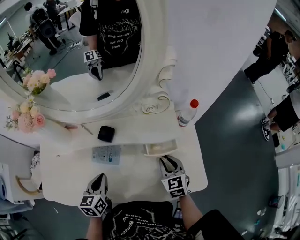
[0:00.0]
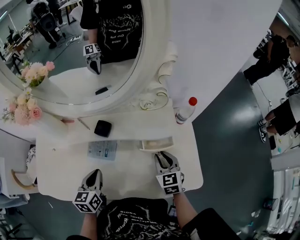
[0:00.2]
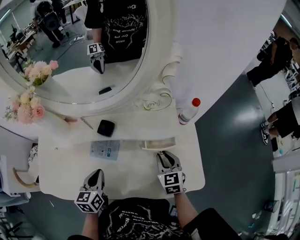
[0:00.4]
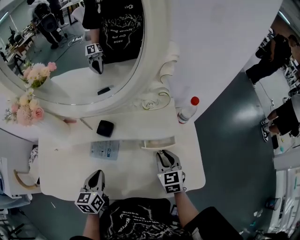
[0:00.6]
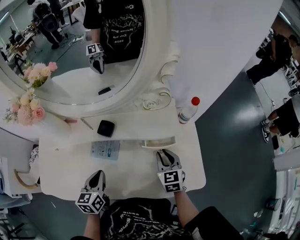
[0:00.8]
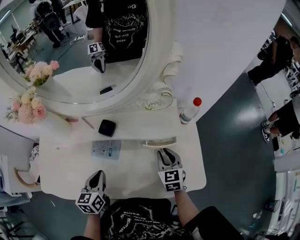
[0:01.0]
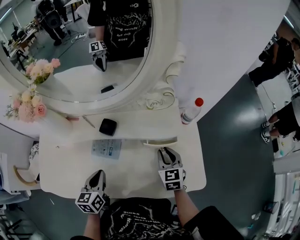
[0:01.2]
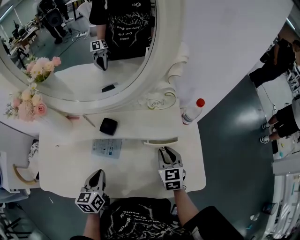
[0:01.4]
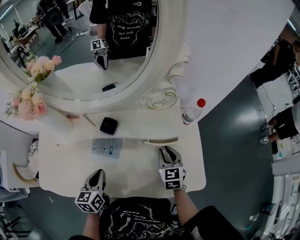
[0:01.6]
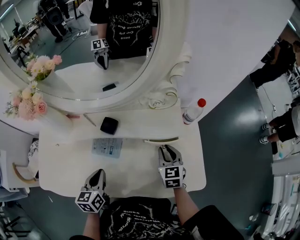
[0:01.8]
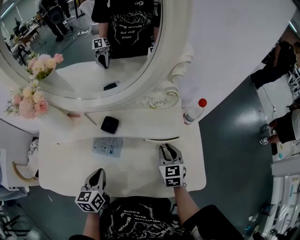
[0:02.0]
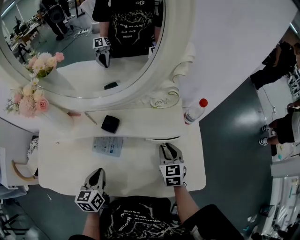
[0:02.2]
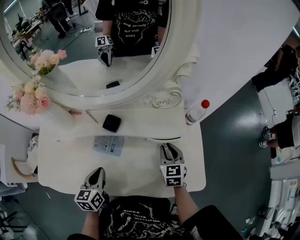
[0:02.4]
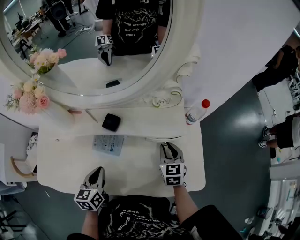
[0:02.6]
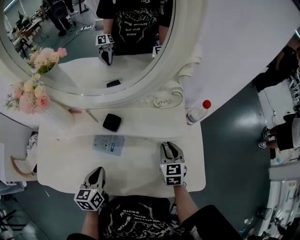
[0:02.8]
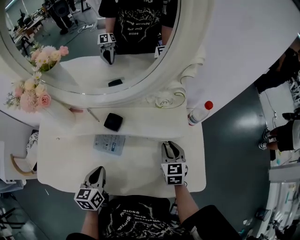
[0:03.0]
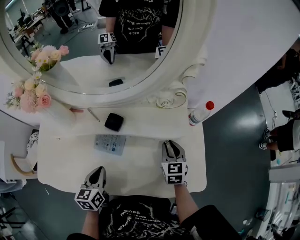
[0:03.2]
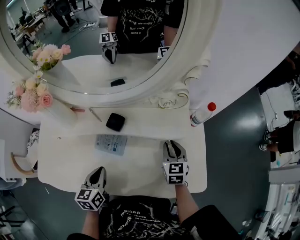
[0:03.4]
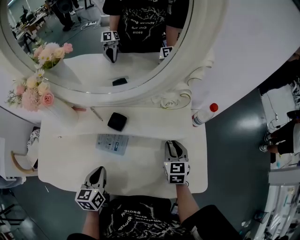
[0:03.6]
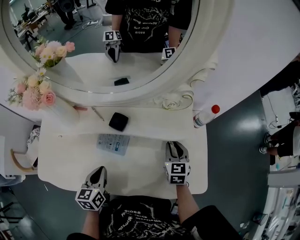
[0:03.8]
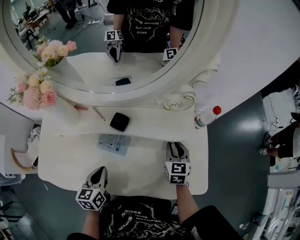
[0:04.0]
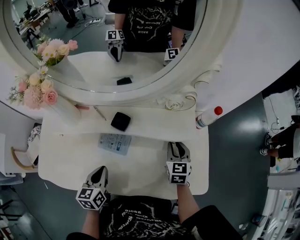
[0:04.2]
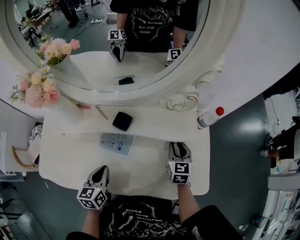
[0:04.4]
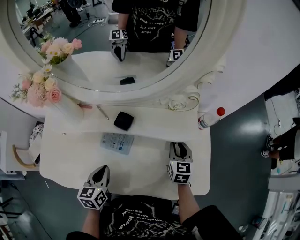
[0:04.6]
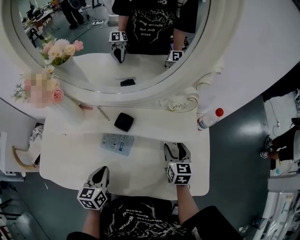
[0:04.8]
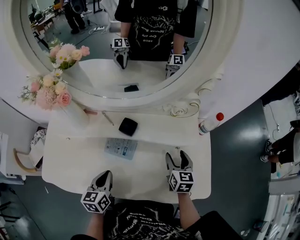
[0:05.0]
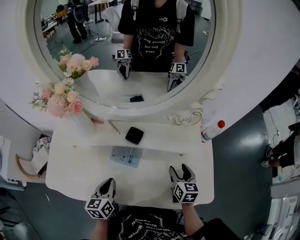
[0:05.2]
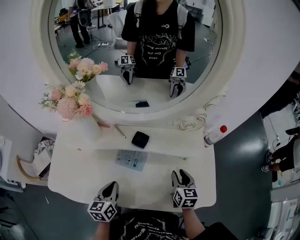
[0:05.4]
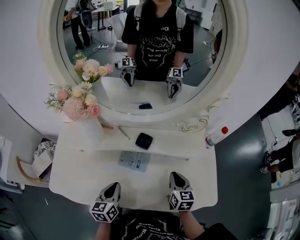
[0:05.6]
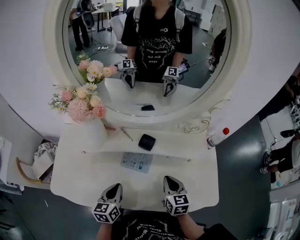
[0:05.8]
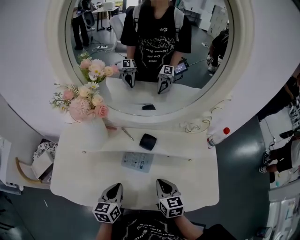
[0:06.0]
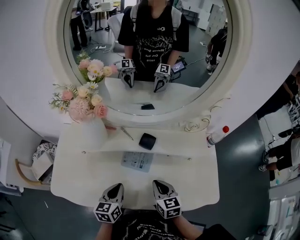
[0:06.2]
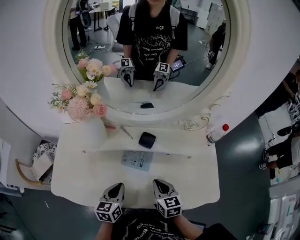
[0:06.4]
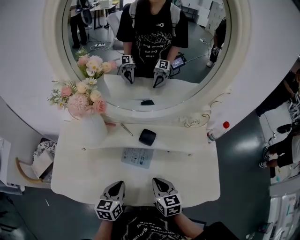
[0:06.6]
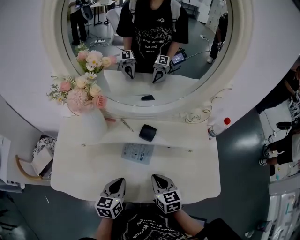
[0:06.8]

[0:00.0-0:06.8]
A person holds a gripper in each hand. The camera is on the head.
0:00.0 to 0:02.8: The grippers move only a little.
0:02.8 to 0:04.0: The grippers make only small movements.
0:04.0 to 0:05.4: The right gripper heads backward, covering about 5 cm, and opens, then closes once more.
0:05.4 to 0:06.8: The right gripper heads to the left, covering about 15 cm, and closes its fingers.

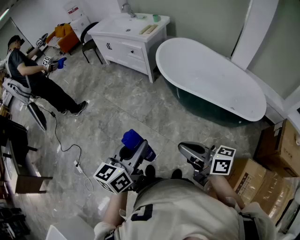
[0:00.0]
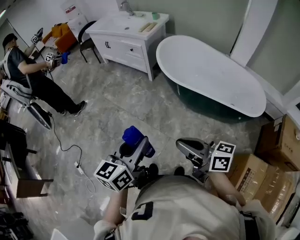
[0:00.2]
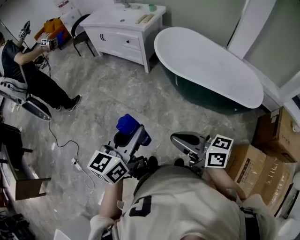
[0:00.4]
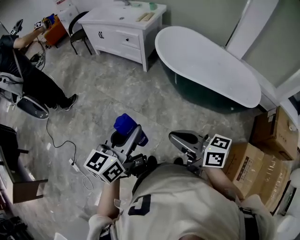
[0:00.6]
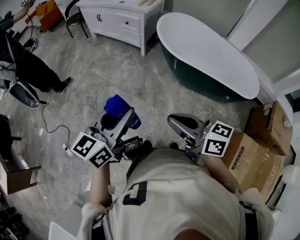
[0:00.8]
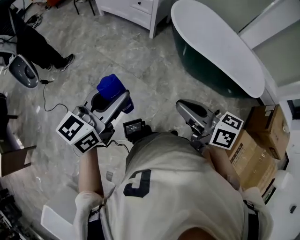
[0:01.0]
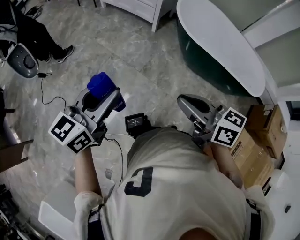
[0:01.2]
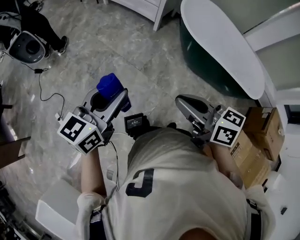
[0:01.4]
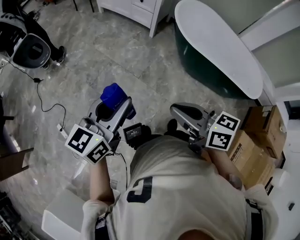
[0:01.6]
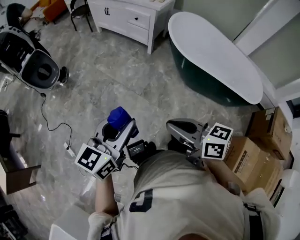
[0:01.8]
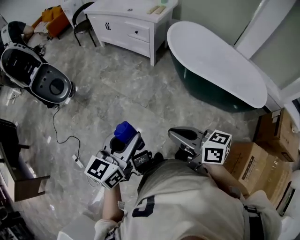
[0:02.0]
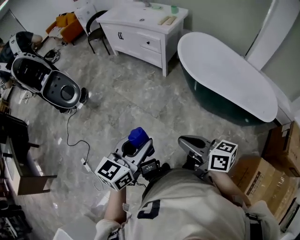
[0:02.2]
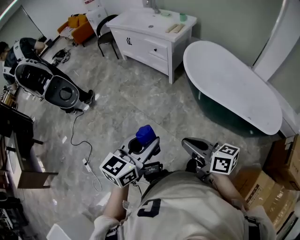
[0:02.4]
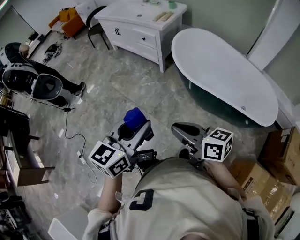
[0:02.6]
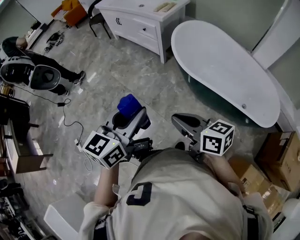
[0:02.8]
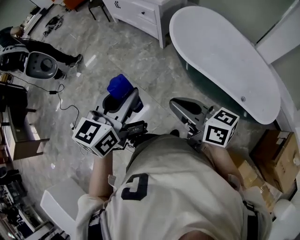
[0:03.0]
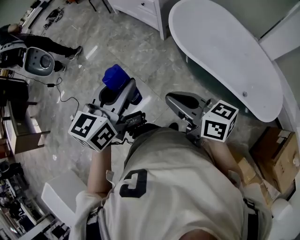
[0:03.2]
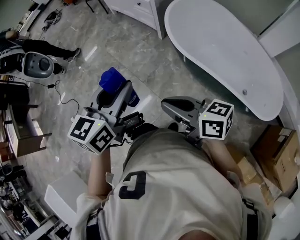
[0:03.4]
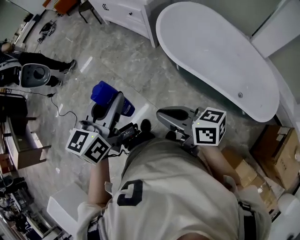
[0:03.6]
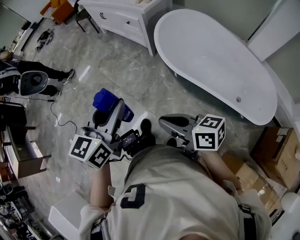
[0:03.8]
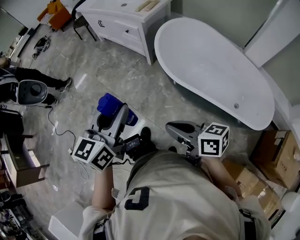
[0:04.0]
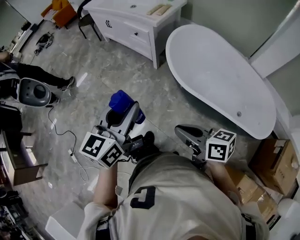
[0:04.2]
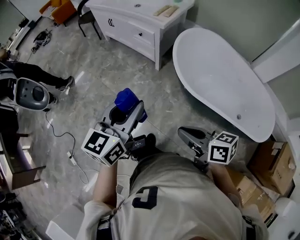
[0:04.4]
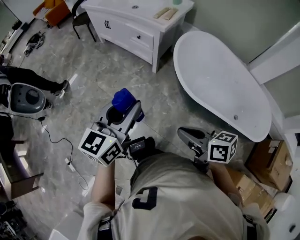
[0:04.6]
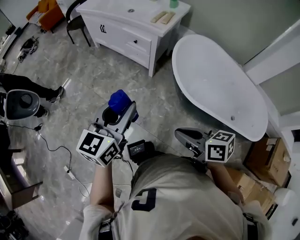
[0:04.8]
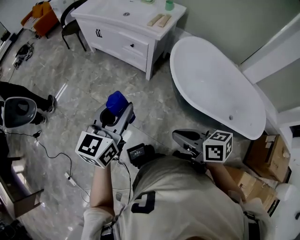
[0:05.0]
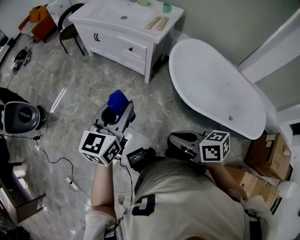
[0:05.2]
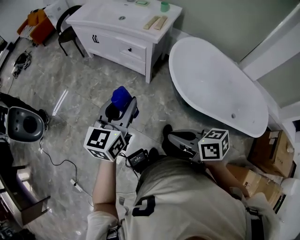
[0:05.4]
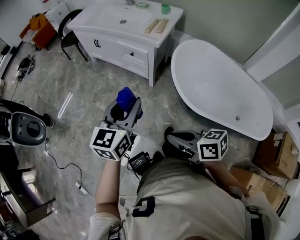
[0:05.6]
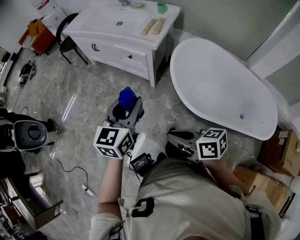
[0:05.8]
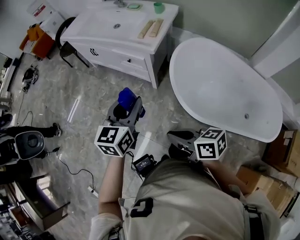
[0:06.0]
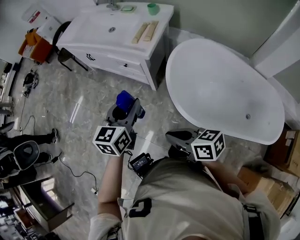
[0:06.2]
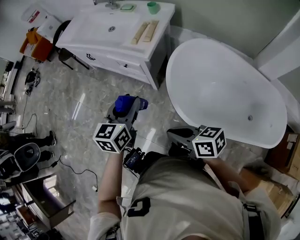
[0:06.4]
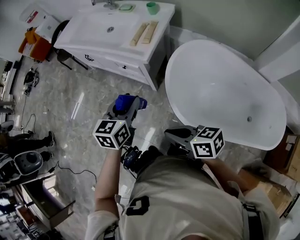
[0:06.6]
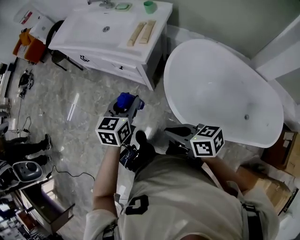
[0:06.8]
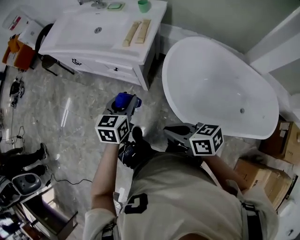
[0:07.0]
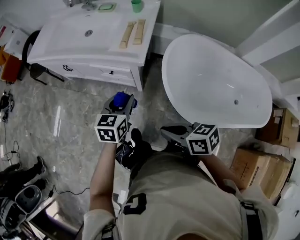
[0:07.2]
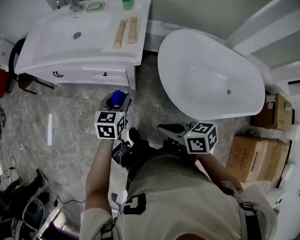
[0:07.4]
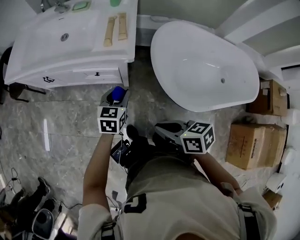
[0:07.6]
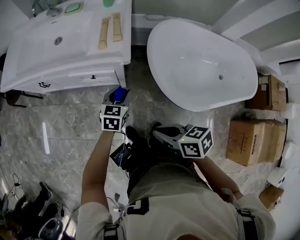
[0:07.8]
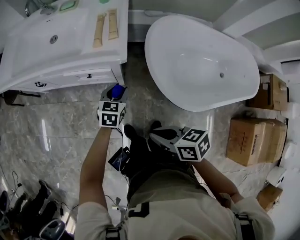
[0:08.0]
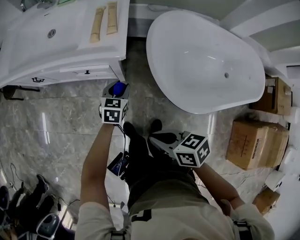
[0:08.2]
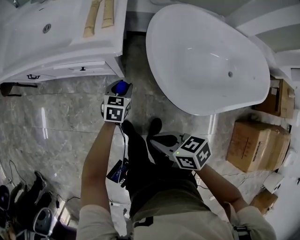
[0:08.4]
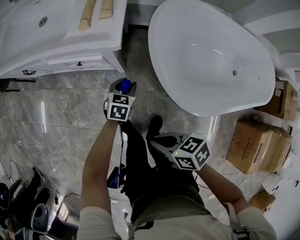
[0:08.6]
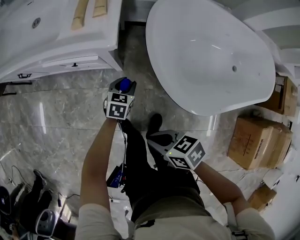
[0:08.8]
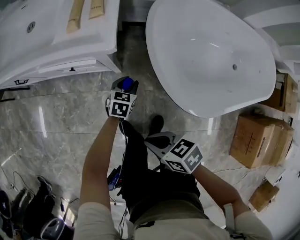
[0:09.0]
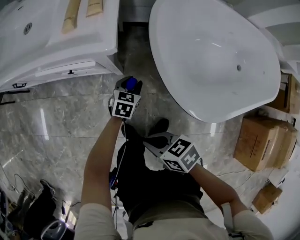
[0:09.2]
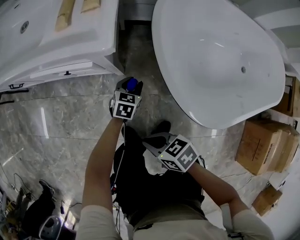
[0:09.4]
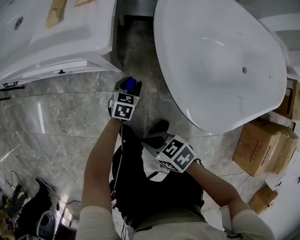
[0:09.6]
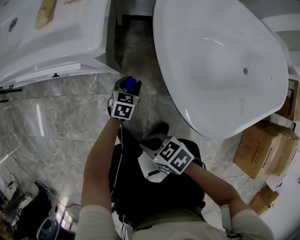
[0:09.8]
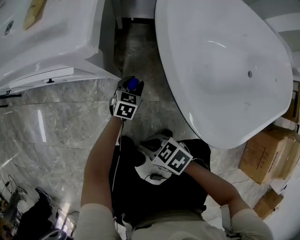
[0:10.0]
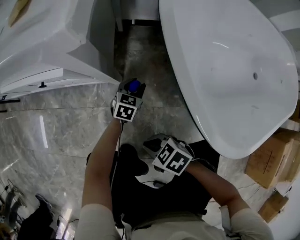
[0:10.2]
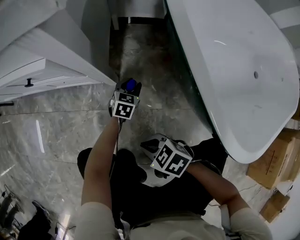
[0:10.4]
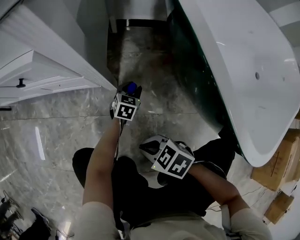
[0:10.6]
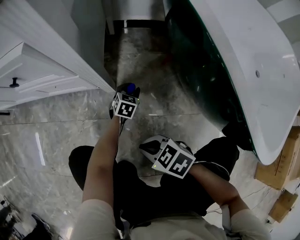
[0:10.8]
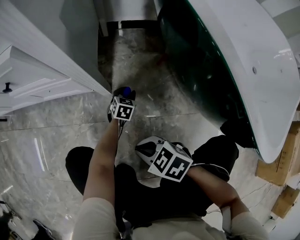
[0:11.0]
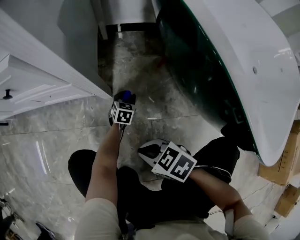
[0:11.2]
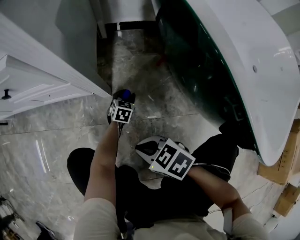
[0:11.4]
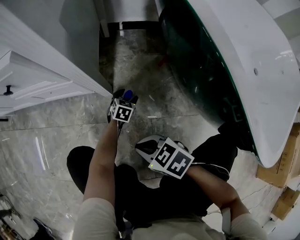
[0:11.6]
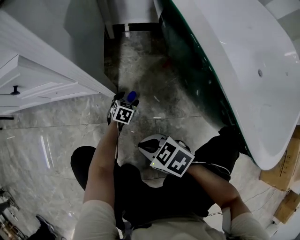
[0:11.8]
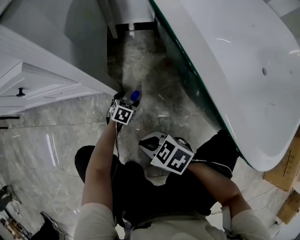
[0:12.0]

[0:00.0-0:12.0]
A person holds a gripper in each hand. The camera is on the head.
0:00.0 to 0:01.6: The grippers both shift to the left by roughly 25 cm.
0:01.6 to 0:03.0: The two grippers go some 30 cm to the right.
0:03.0 to 0:04.4: Both grippers travel together forward, some 15 cm.
0:04.4 to 0:06.0: The grippers both shift forward by roughly 25 cm.
0:06.0 to 0:07.6: The left gripper goes approximately 30 cm forward and downward, and changes its angle by roughly 30 degrees; the right gripper shifts about 20 cm forward, and turns by about 30 degrees.
0:07.6 to 0:09.0: Both grippers travel together downward, roughly 25 cm.
0:09.0 to 0:10.4: Both grippers travel together downward, roughly 35 cm. The right gripper changes its angle by about 30 degrees.
0:10.4 to 0:12.0: The left gripper travels downward by about 10 cm, and opens. The right gripper goes some 5 cm downward.

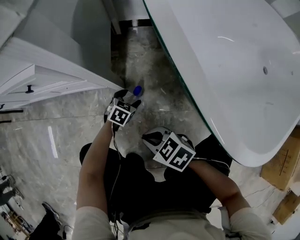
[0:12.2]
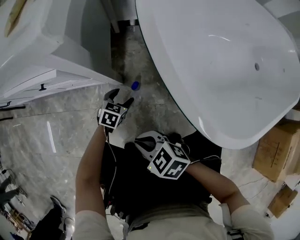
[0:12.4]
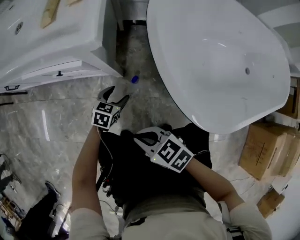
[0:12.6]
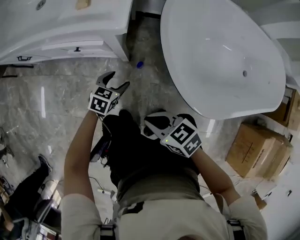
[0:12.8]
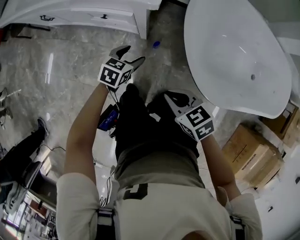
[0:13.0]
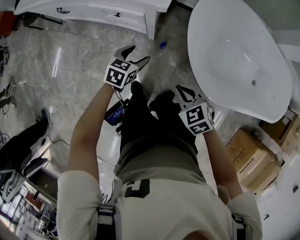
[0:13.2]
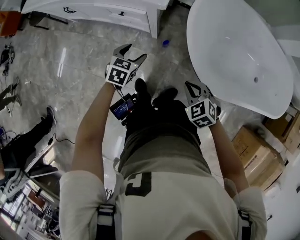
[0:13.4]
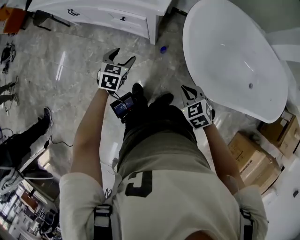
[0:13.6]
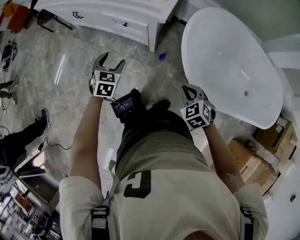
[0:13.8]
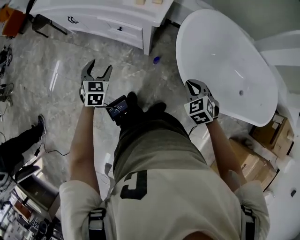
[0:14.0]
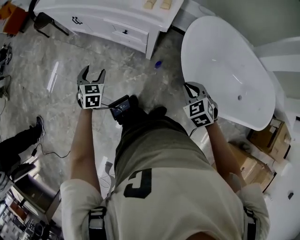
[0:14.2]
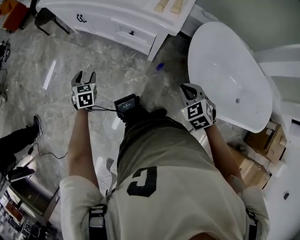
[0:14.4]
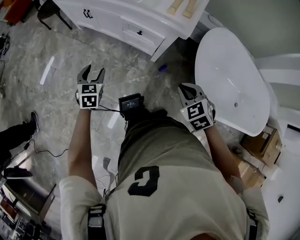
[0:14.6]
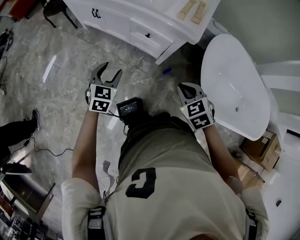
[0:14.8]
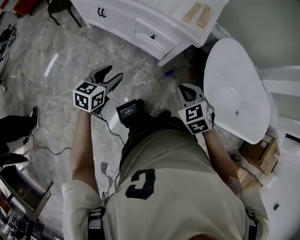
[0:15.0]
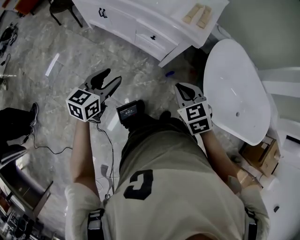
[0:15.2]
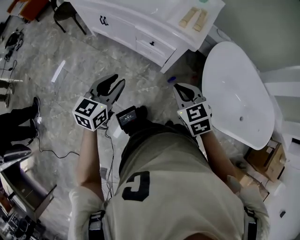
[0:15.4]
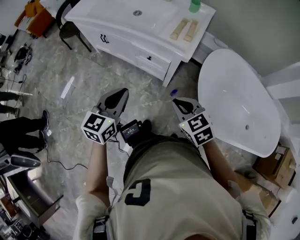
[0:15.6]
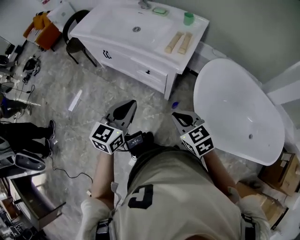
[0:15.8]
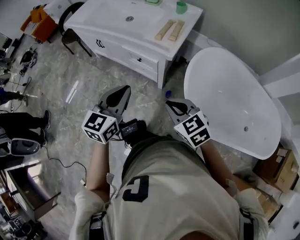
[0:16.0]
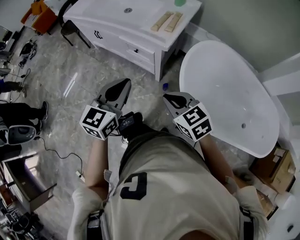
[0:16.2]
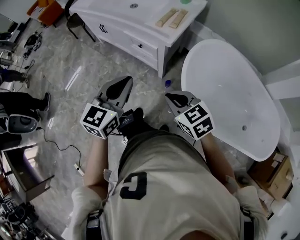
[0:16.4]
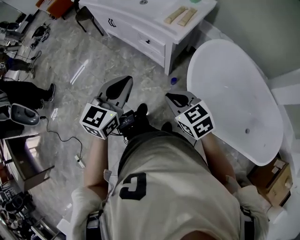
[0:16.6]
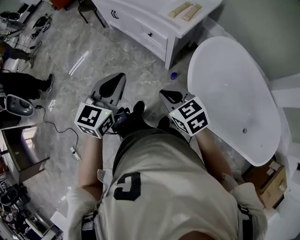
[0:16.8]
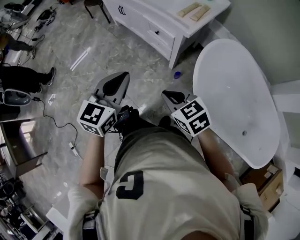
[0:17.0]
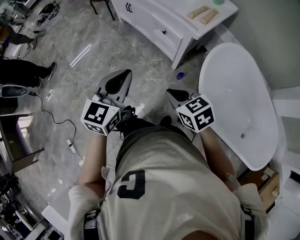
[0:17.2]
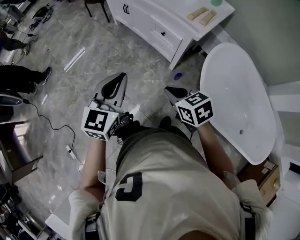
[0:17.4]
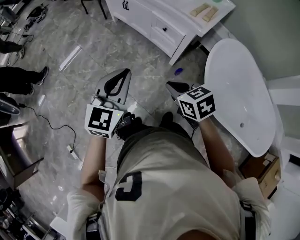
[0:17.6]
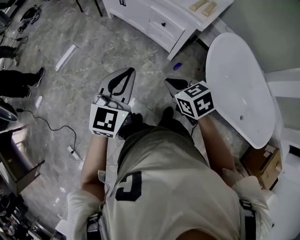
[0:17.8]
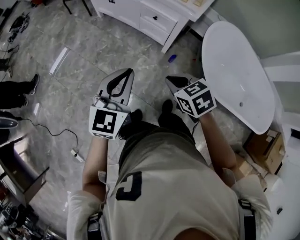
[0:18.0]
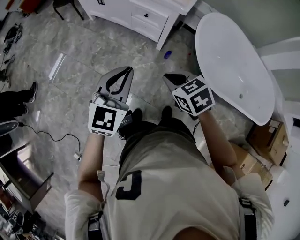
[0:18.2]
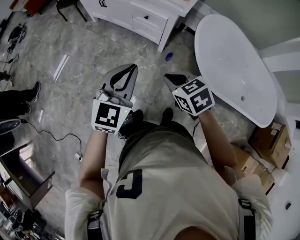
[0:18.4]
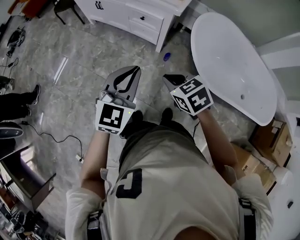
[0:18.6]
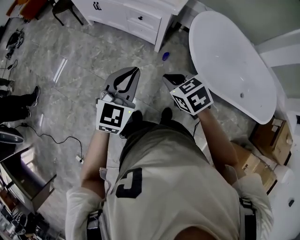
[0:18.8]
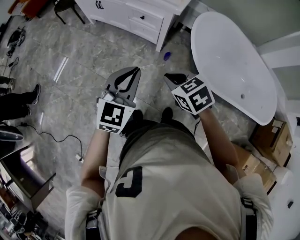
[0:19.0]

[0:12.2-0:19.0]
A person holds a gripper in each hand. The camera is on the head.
0:12.2 to 0:13.6: The two grippers go some 50 cm upward. The right gripper changes its angle by roughly 30 degrees; the left gripper rotates about 40 degrees.
0:13.6 to 0:15.0: The left gripper heads to the left, covering about 25 cm, and rotates about 20 degrees. Meanwhile the right gripper heads to the left, upward and forward, covering about 25 cm.
0:15.0 to 0:16.2: The right gripper goes some 20 cm to the right, upward and backward, and turns by about 30 degrees; the left gripper travels to the right and upward by approximately 30 cm, changes its angle by about 20 degrees, and closes its fingers.
0:16.2 to 0:17.6: Both grippers move to the left, approximately 20 cm.
0:17.6 to 0:19.0: The left gripper is displaced to the right by approximately 10 cm. The right gripper ends up approximately 5 cm from where it was.
